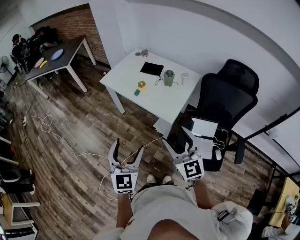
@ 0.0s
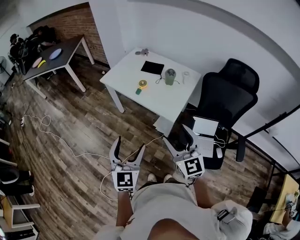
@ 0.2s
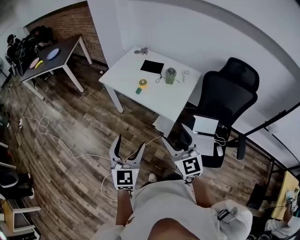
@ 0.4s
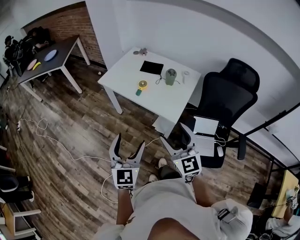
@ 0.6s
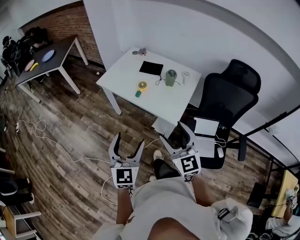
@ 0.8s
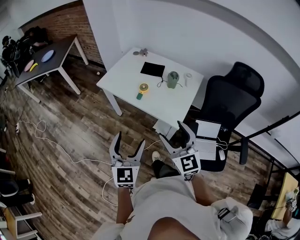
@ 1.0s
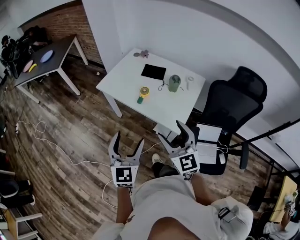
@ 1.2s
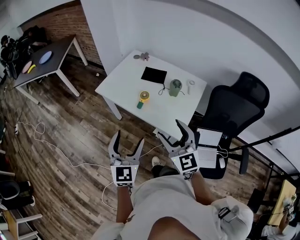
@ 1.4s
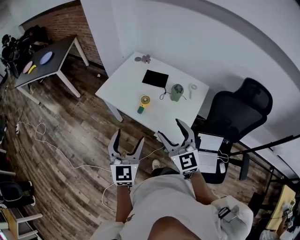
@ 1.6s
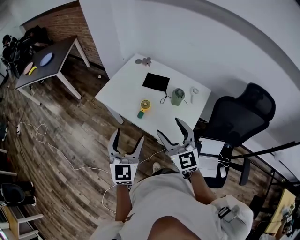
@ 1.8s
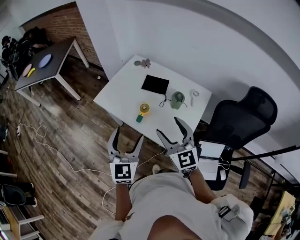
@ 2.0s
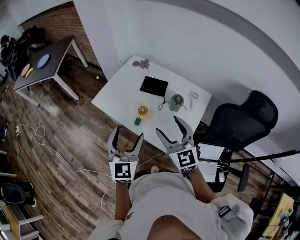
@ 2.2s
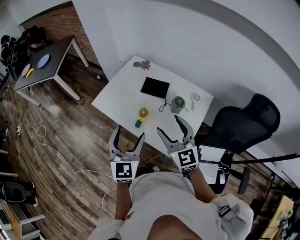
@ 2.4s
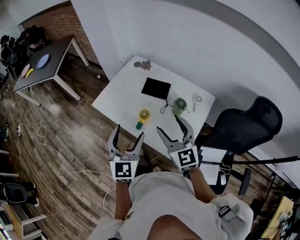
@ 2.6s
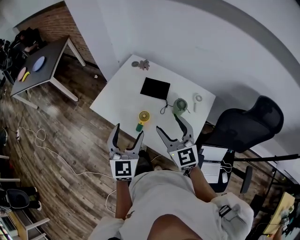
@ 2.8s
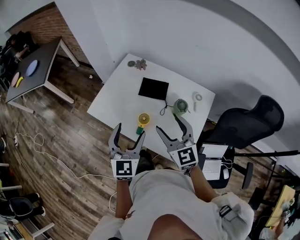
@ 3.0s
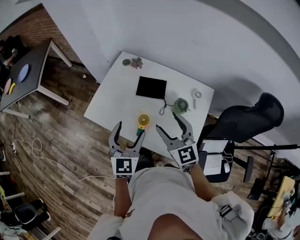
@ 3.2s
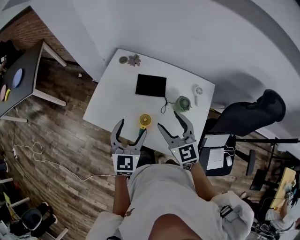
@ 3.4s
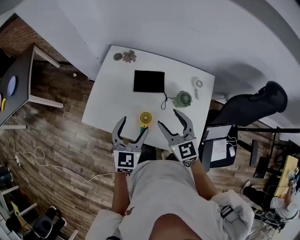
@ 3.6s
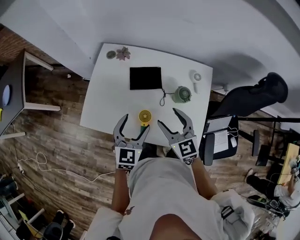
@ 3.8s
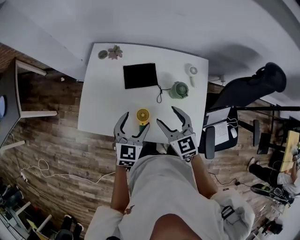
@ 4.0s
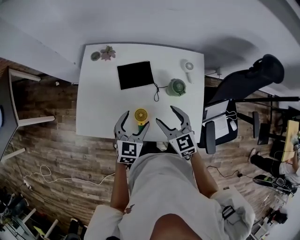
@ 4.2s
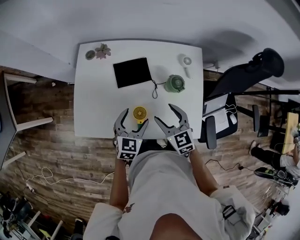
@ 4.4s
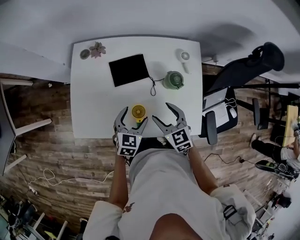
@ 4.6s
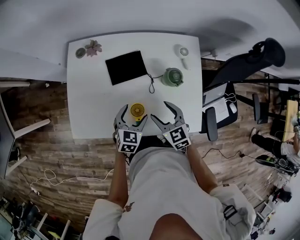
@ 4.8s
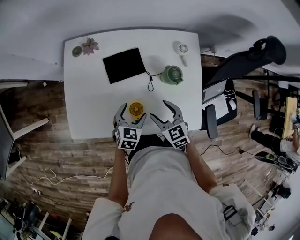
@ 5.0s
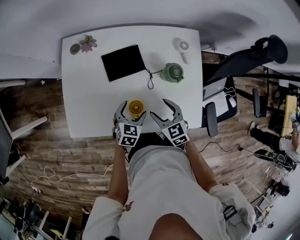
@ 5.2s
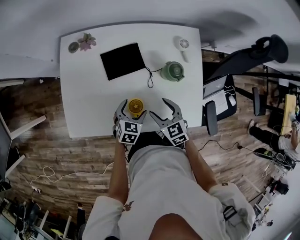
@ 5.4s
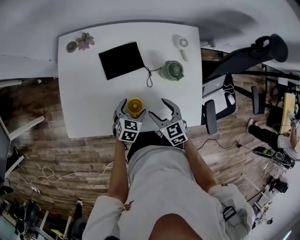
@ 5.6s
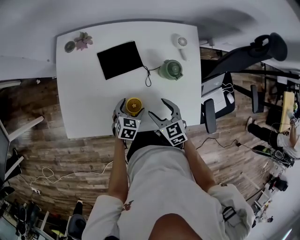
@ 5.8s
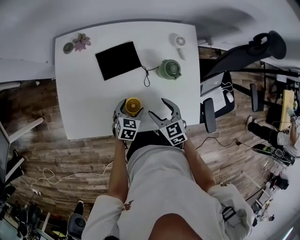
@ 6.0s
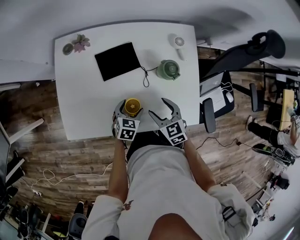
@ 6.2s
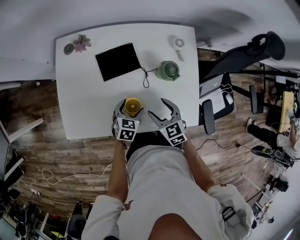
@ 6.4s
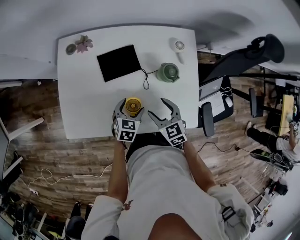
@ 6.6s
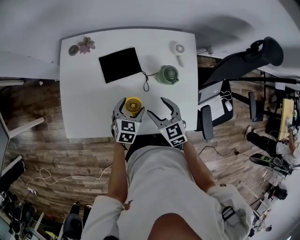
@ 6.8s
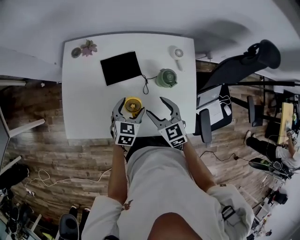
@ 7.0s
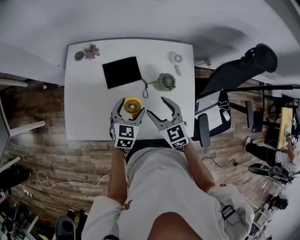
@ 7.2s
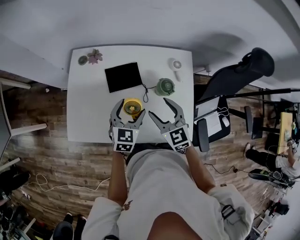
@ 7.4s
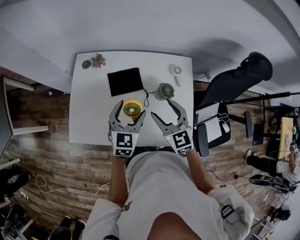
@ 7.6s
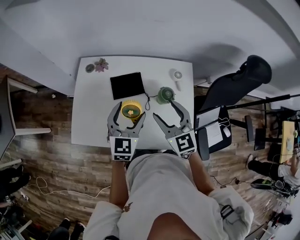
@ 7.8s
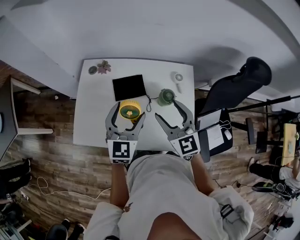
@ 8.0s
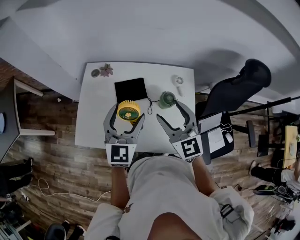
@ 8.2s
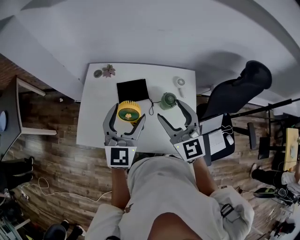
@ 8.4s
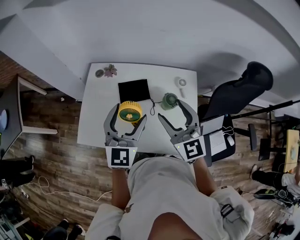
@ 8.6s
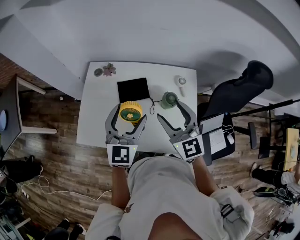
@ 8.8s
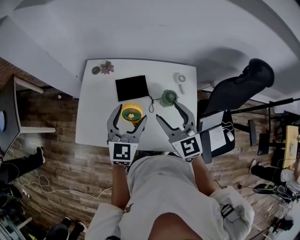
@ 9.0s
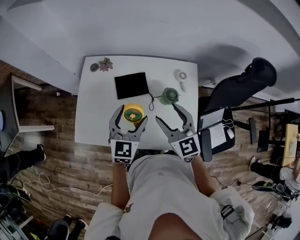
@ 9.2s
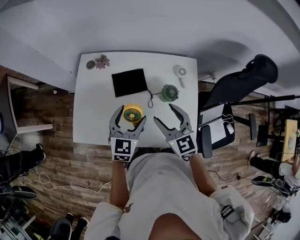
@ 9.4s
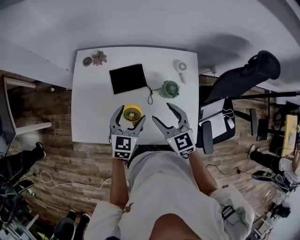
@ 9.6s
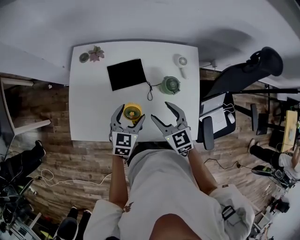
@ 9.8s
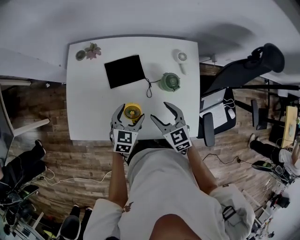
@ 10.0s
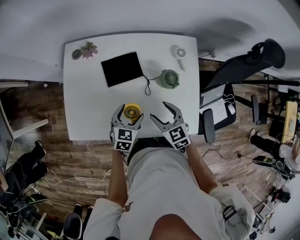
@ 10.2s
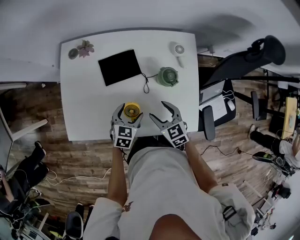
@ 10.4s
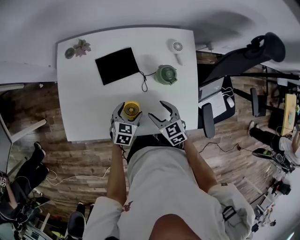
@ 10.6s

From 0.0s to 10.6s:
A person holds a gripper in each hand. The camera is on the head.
From 0.0s to 1.6s: Both grippers travel together forward, about 25 cm.
From 1.6s to 3.0s: Both grippers move forward, some 20 cm.
From 3.0s to 4.6s: Both grippers travel together downward, about 20 cm. The left gripper changes its angle by approximately 50 degrees; the right gripper rotates approximately 30 degrees.
From 4.6s to 6.0s: The right gripper travels downward by about 10 cm. Meanwhile the left gripper shifts some 10 cm downward.
From 6.0s to 7.6s: The grippers both shift upward by roughly 20 cm. The left gripper turns by about 30 degrees. The right gripper turns by roughly 30 degrees.
From 7.6s to 9.0s: Both grippers travel together upward, roughly 10 cm.
From 9.0s to 10.6s: Both grippers travel together downward, some 30 cm. The left gripper angles its fingers downward, by approximately 30 degrees; the right gripper tilts its fingers approximately 30 degrees downward.

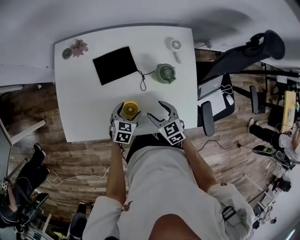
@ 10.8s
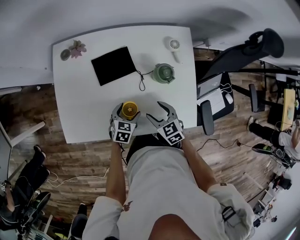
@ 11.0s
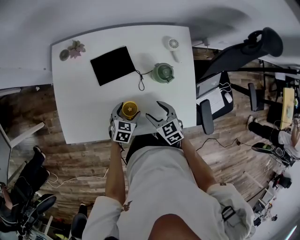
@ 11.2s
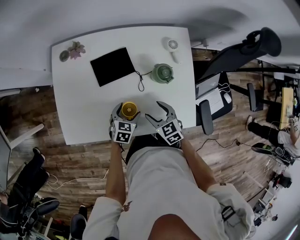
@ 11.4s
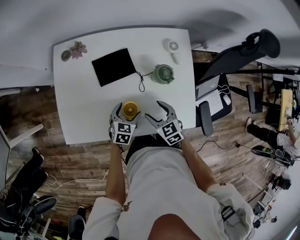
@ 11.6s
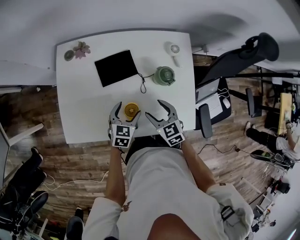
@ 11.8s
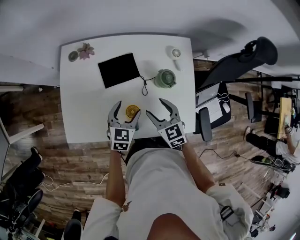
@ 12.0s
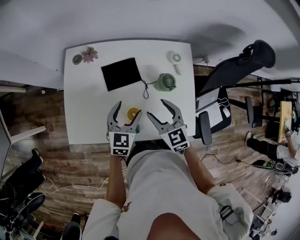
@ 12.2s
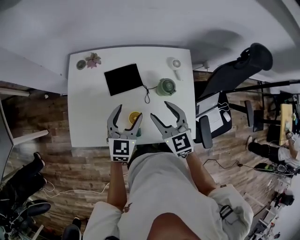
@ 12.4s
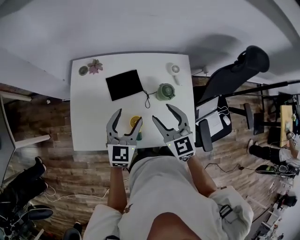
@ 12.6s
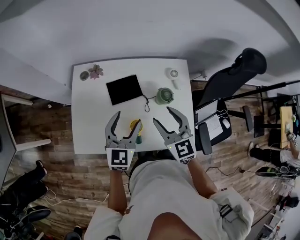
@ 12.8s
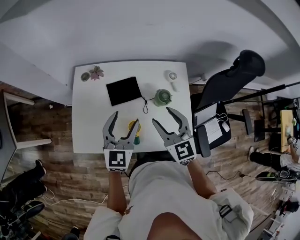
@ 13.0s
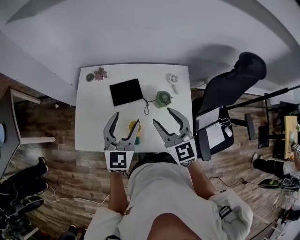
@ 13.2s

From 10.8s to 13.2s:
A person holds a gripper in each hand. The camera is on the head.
From 10.8s to 12.0s: The two grippers go roughly 10 cm upward.
From 12.0s to 13.2s: The two grippers go roughly 20 cm upward. The right gripper changes its angle by about 20 degrees. Meanwhile the left gripper turns by some 30 degrees.

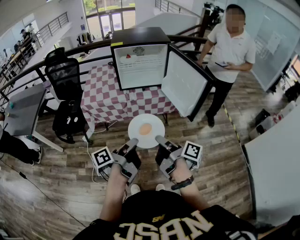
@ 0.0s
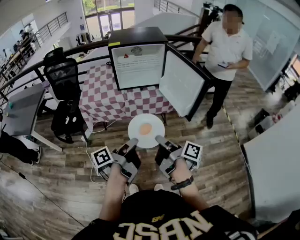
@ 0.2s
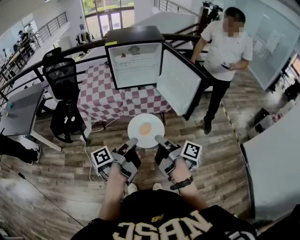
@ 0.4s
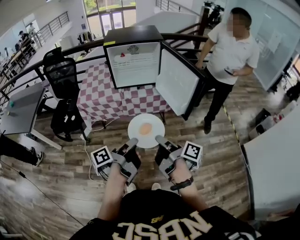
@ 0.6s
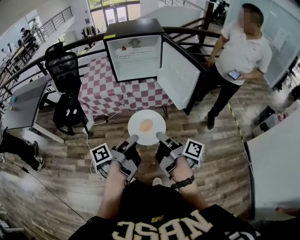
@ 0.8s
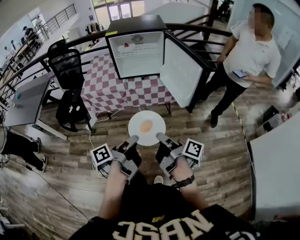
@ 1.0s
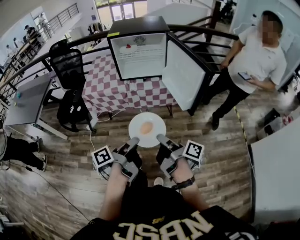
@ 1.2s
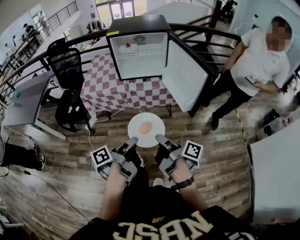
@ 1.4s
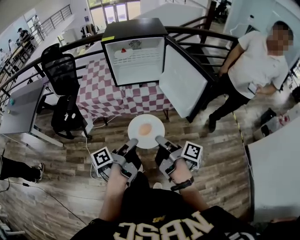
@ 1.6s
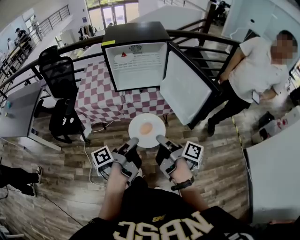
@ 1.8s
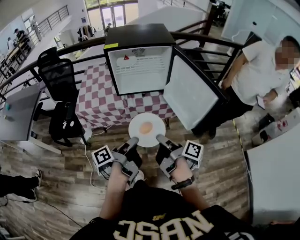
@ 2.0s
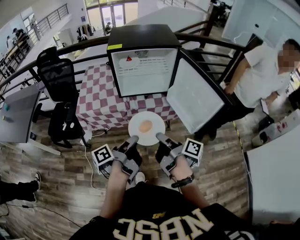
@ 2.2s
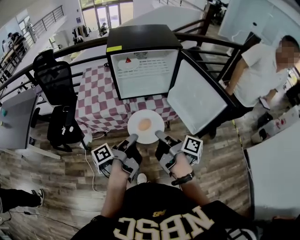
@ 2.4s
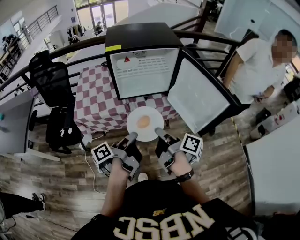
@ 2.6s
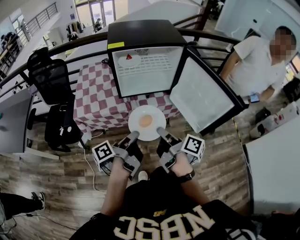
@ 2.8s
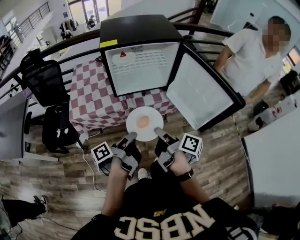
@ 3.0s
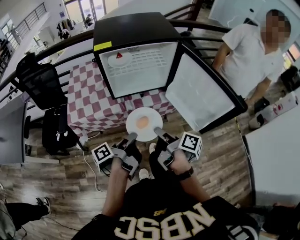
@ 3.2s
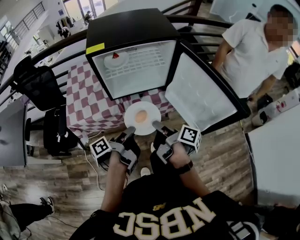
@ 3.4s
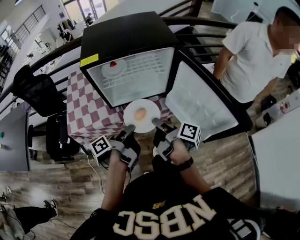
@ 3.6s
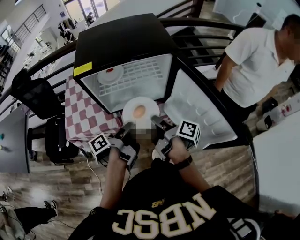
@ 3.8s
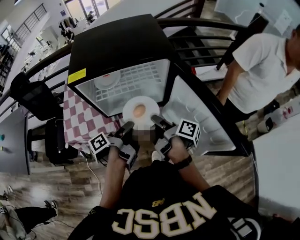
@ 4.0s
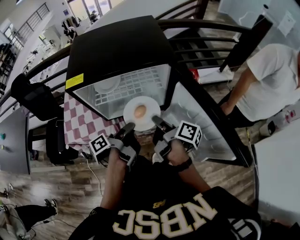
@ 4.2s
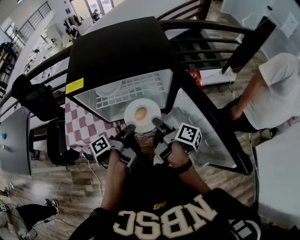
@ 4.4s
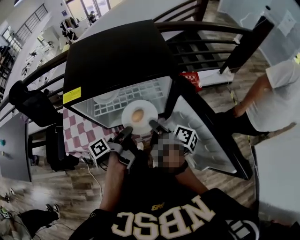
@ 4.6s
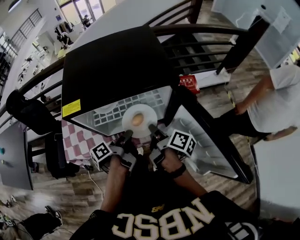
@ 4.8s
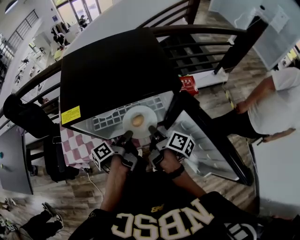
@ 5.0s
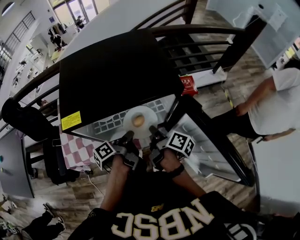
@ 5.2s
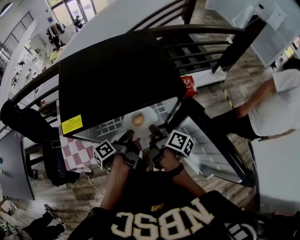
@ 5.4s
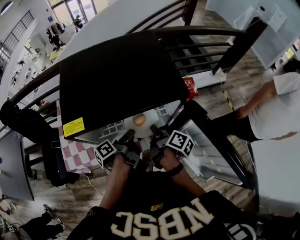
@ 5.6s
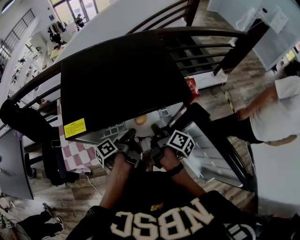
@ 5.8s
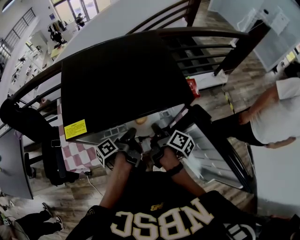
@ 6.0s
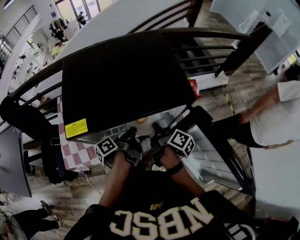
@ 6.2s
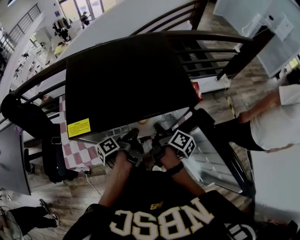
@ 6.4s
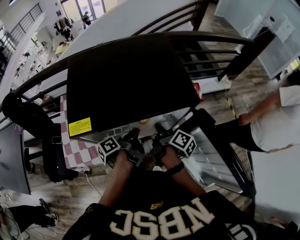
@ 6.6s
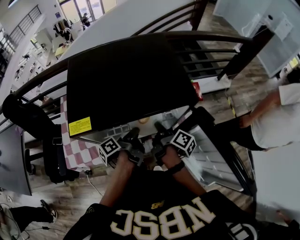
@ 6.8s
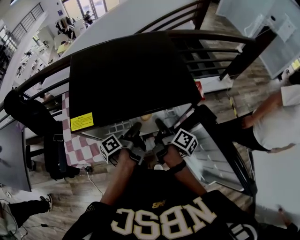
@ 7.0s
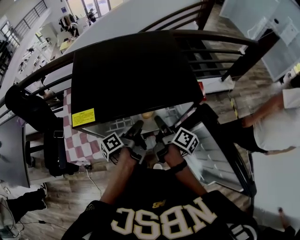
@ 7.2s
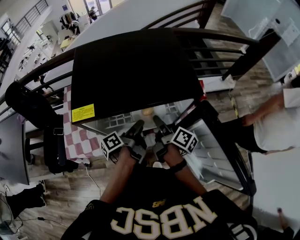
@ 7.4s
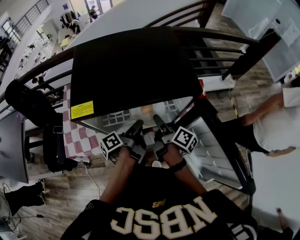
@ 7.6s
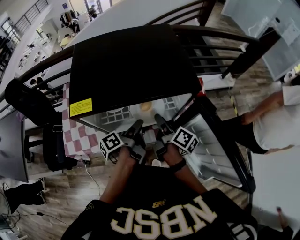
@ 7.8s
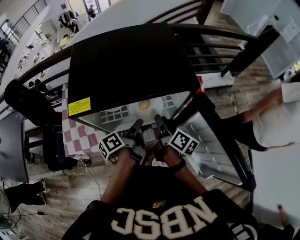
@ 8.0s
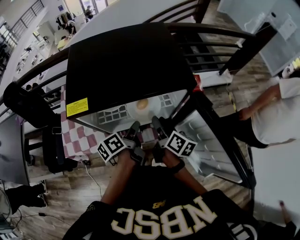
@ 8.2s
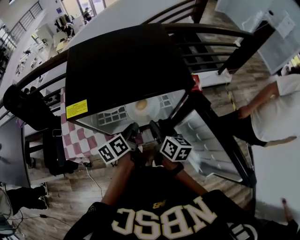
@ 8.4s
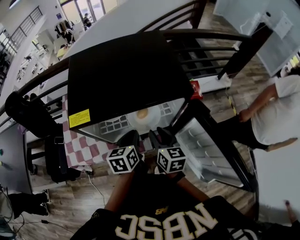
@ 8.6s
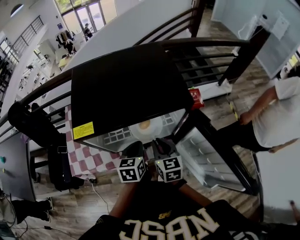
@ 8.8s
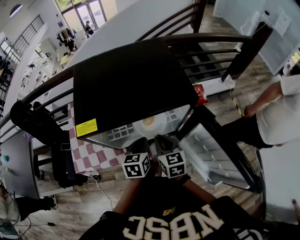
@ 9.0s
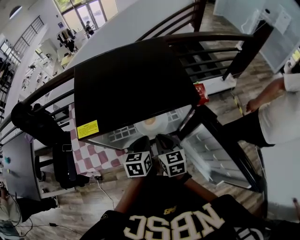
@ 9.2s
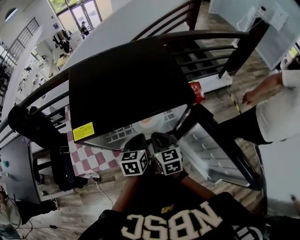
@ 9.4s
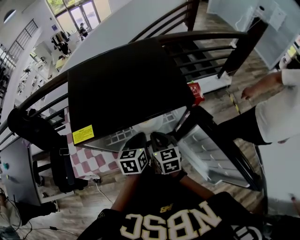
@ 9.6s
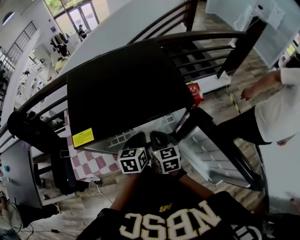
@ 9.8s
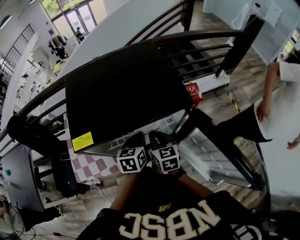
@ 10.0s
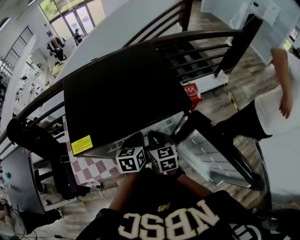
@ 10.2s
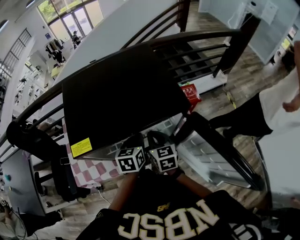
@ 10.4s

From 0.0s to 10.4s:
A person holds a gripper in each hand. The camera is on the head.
From 0.0s to 1.4s: The right gripper shifts by about 5 cm.
From 1.4s to 3.0s: The right gripper moves approximately 25 cm.
From 3.0s to 4.4s: The right gripper shifts by roughly 30 cm.
From 4.4s to 6.0s: The right gripper ends up about 15 cm from where it was.
From 6.0s to 7.4s: The right gripper opens.
From 7.4s to 9.0s: The right gripper rotates around the line of its fingers by about 60 degrees, counterclockwise from behind, and closes its fingers.
From 9.0s to 10.4s: The right gripper moves approximately 5 cm.
